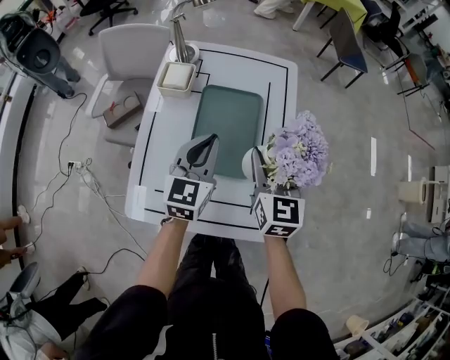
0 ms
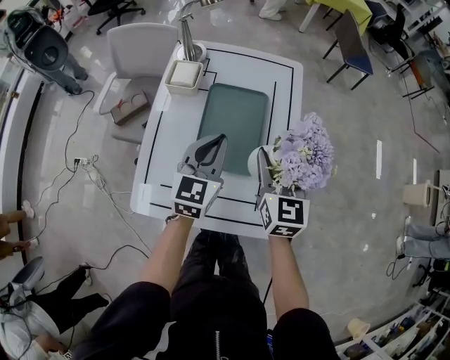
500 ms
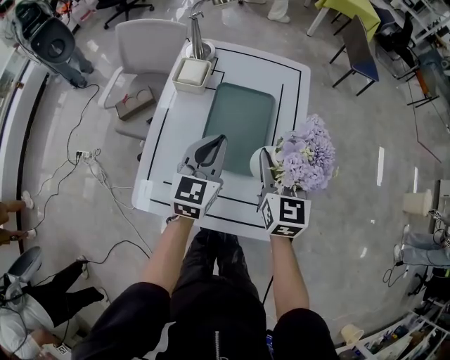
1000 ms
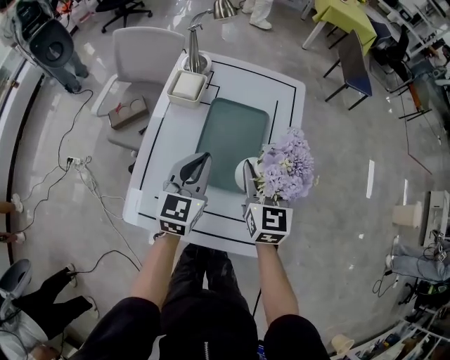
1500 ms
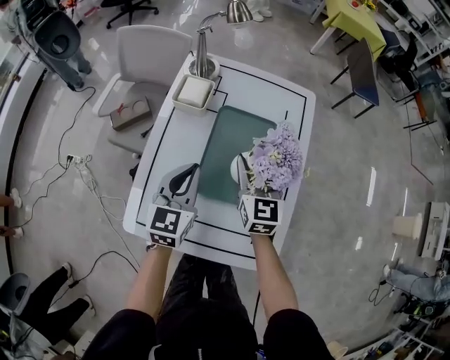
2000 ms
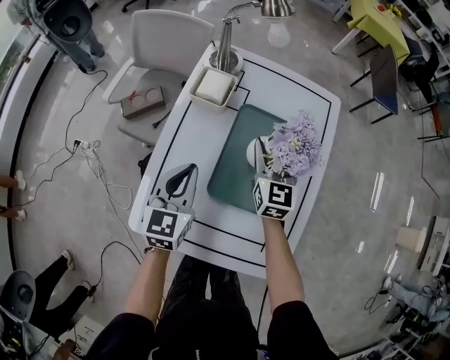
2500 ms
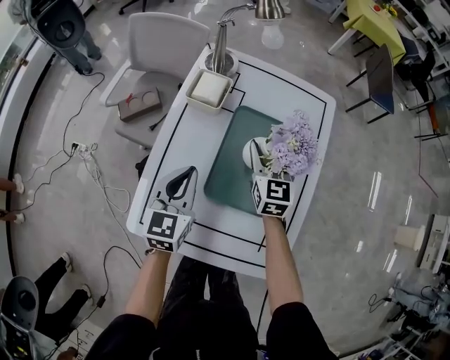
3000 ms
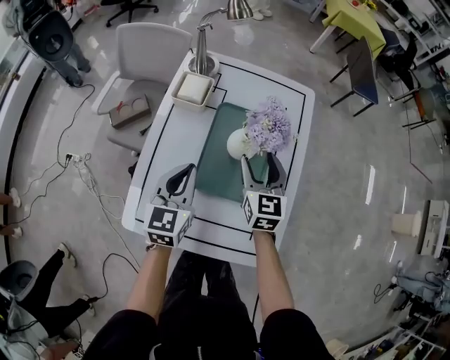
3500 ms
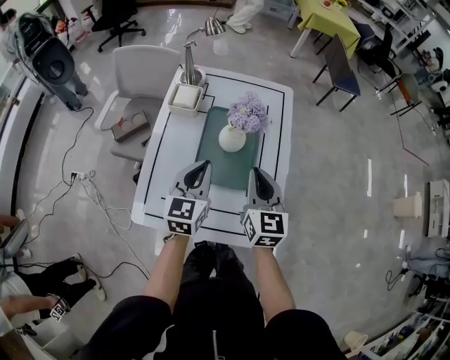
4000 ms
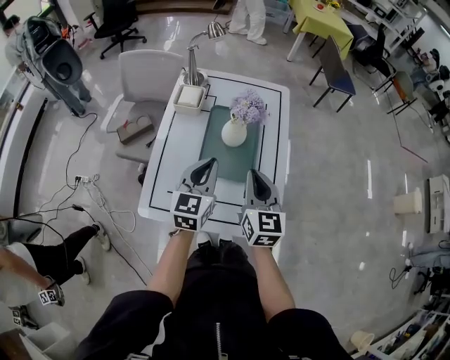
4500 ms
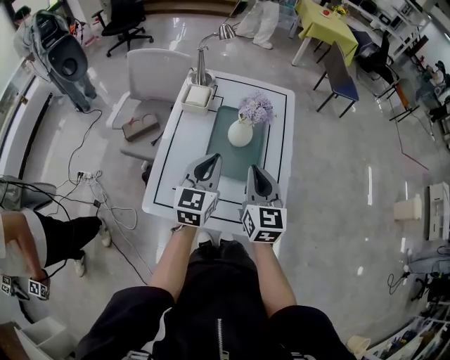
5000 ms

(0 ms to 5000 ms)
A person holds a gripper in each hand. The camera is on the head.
0 ms - 2500 ms: The left gripper shifts some 15 cm to the left and downward, while the right gripper heads forward, downward and to the left, covering approximately 20 cm.
2500 ms - 5000 ms: The left gripper moves upward, backward and to the right, approximately 20 cm, while the right gripper travels backward and upward by roughly 30 cm, and closes its fingers.

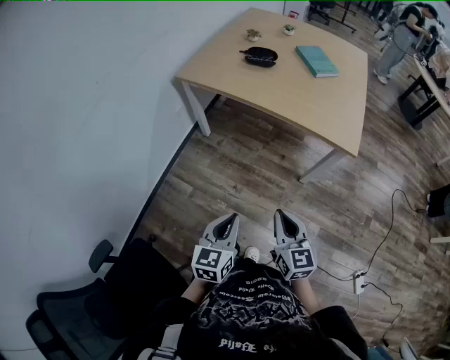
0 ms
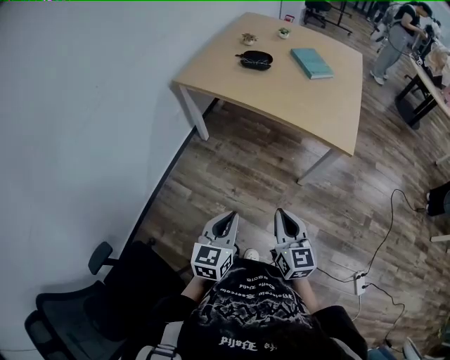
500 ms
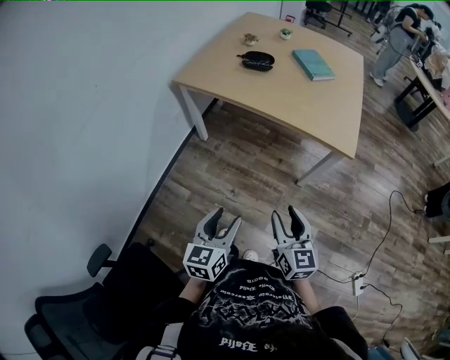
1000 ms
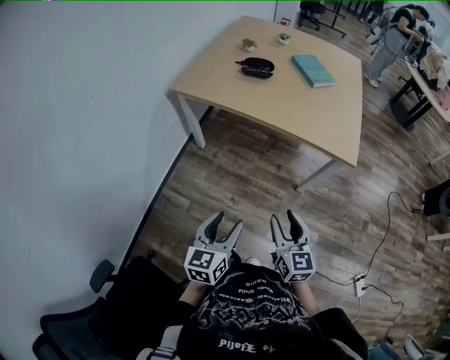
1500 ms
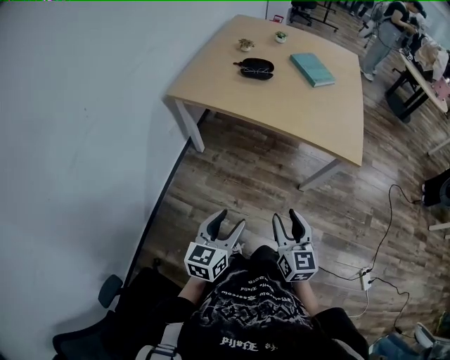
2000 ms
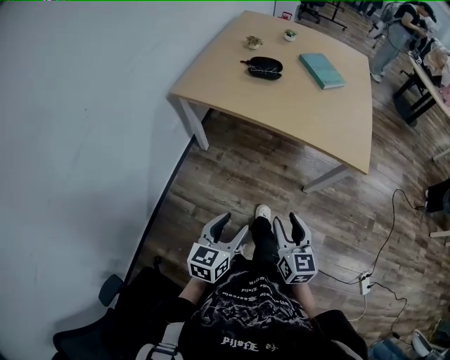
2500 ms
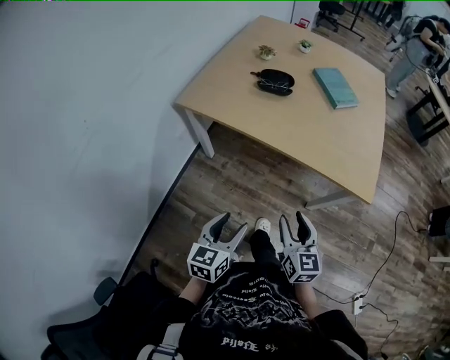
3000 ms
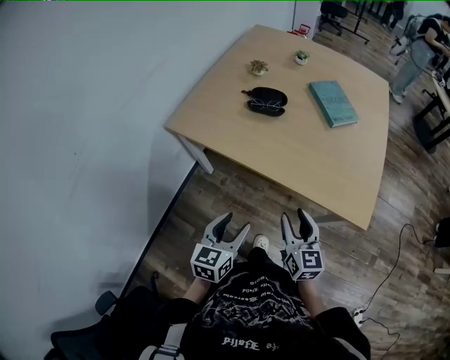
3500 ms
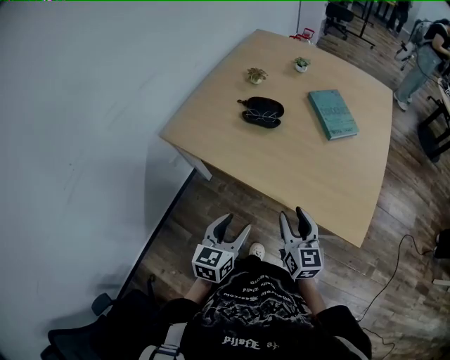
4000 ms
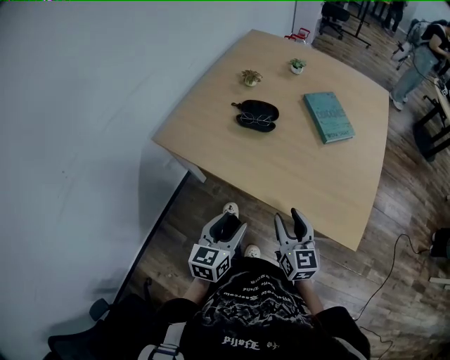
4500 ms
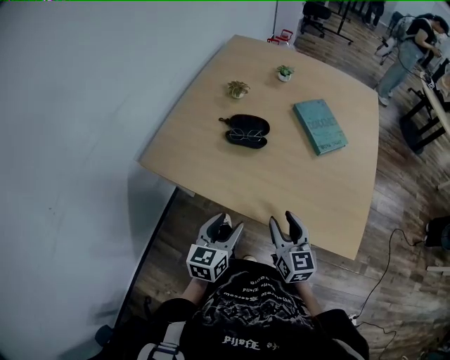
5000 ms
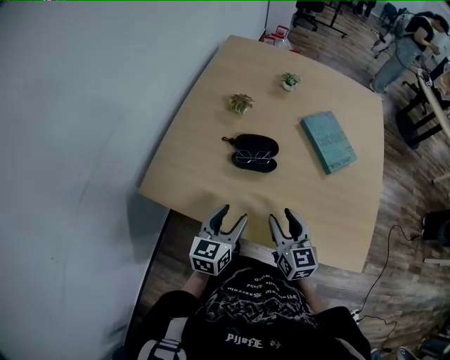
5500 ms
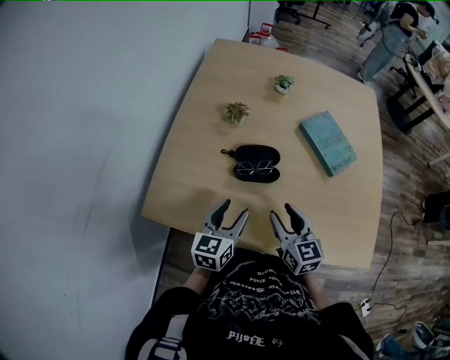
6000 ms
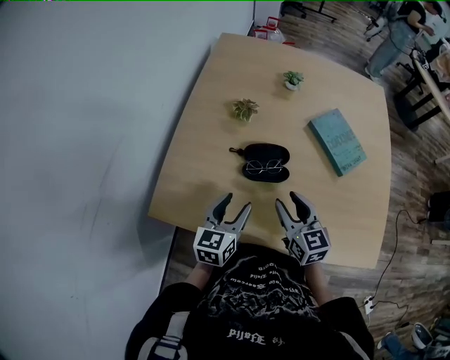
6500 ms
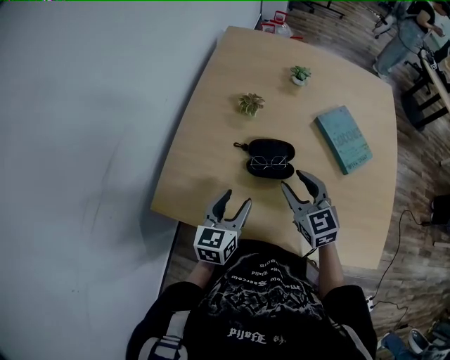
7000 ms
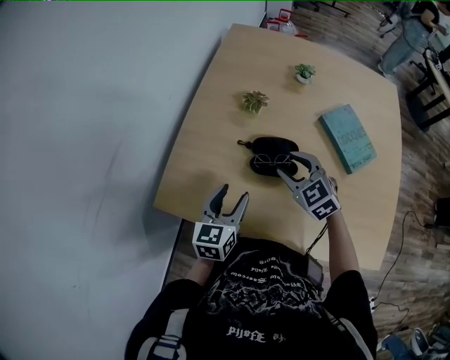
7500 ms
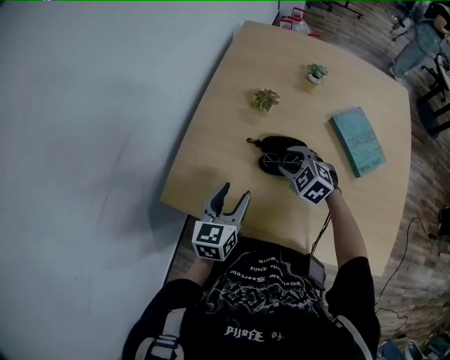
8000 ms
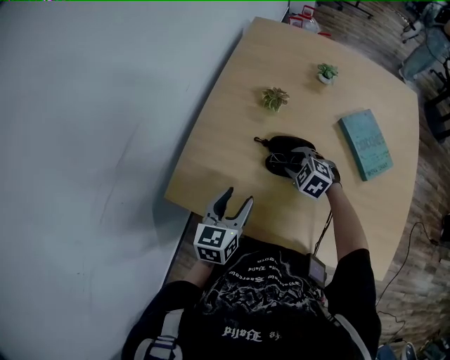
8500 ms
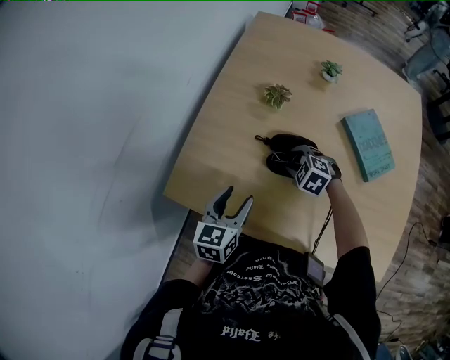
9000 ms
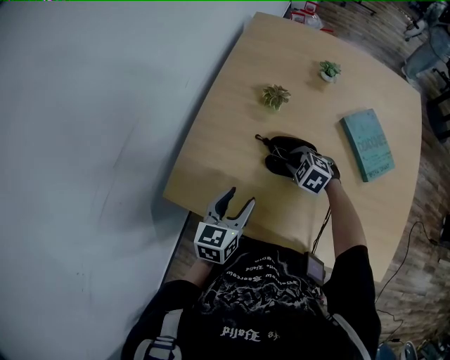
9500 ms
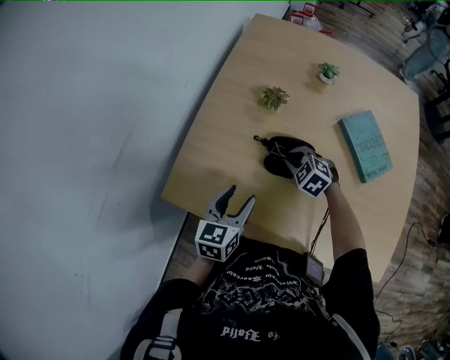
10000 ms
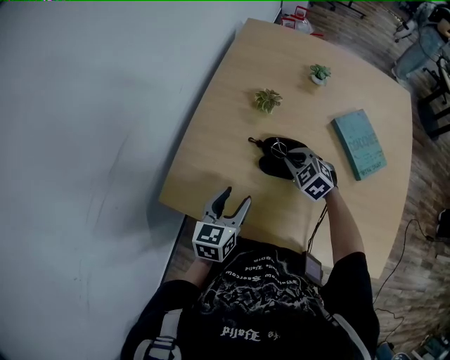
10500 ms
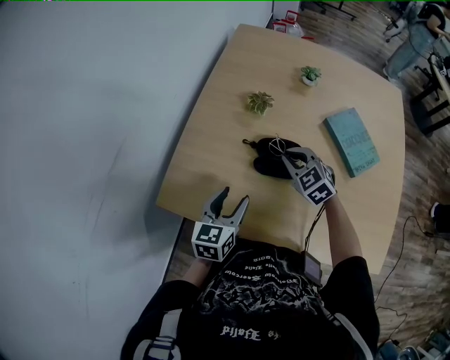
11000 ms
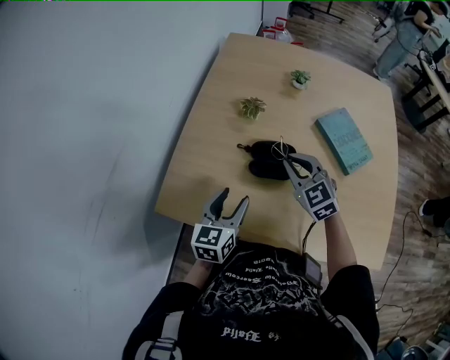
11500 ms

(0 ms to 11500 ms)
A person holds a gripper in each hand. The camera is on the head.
0 ms - 2000 ms: Both grippers move forward and to the left, roughly 10 cm. The right gripper opens up; the left gripper opens.
2000 ms - 4000 ms: Both grippers move forward, some 30 cm.
4000 ms - 6000 ms: The right gripper shifts some 30 cm forward and to the left. The left gripper is displaced forward by about 30 cm.
6000 ms - 7500 ms: The left gripper changes place by about 5 cm. Meanwhile the right gripper is displaced forward by some 15 cm, and rotates roughly 40 degrees.
7500 ms - 9500 ms: The right gripper moves downward, about 15 cm, changes its angle by some 30 degrees, and closes its fingers.
9500 ms - 11500 ms: The right gripper shifts approximately 15 cm upward, and points its fingers some 30 degrees further upward.

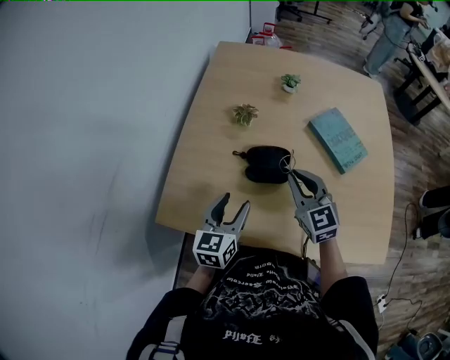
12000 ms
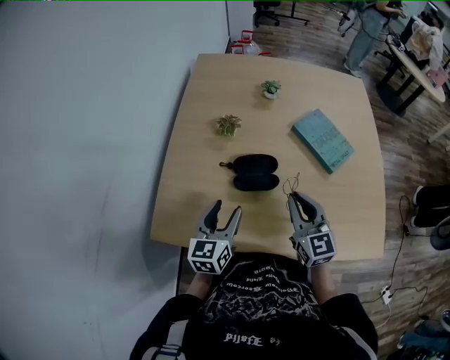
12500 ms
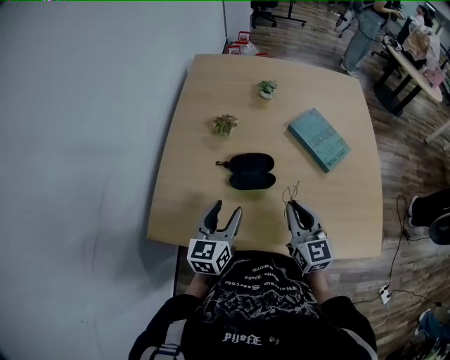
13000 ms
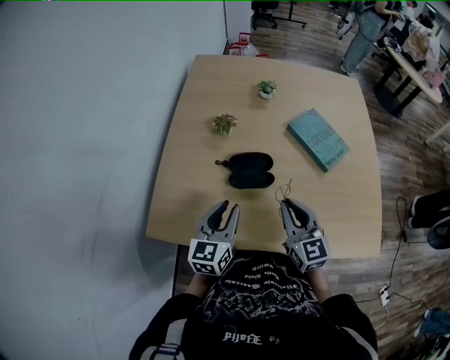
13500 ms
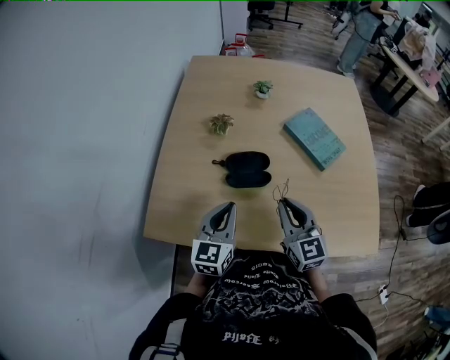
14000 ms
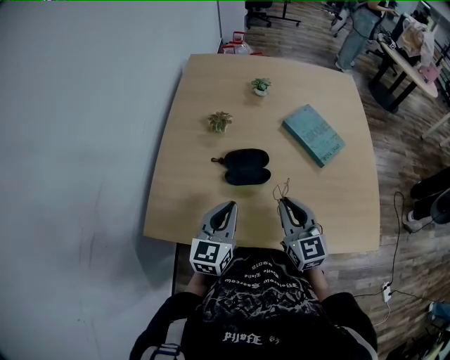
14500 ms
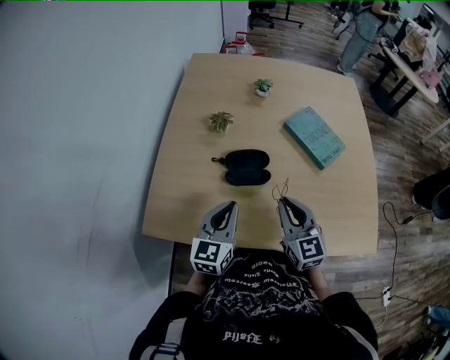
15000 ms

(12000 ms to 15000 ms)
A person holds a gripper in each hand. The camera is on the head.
12000 ms - 13500 ms: The right gripper heads backward, covering some 10 cm. Meanwhile the left gripper closes up.
13500 ms - 15000 ms: The left gripper closes its fingers.

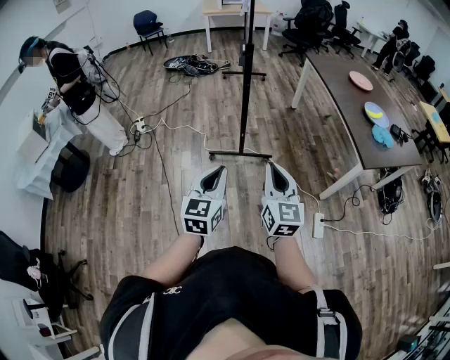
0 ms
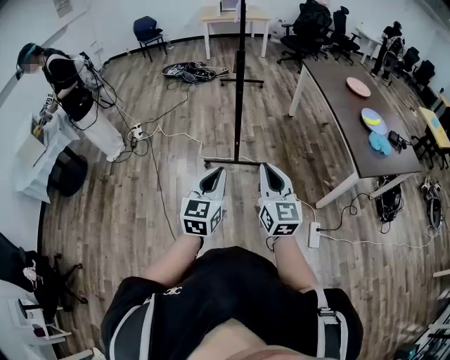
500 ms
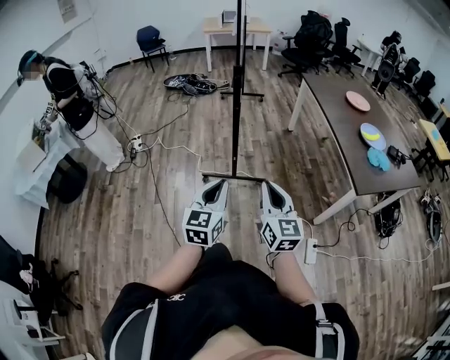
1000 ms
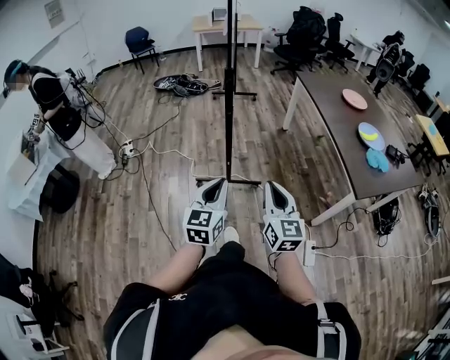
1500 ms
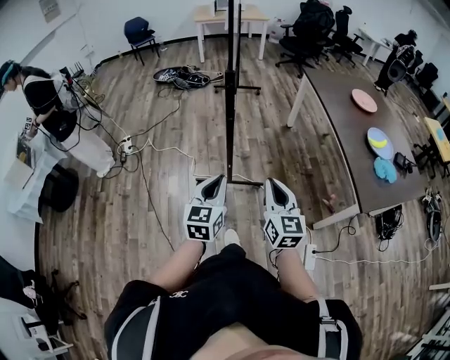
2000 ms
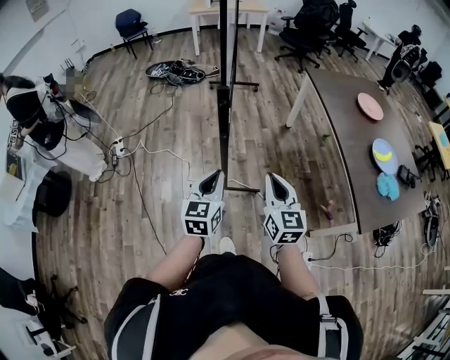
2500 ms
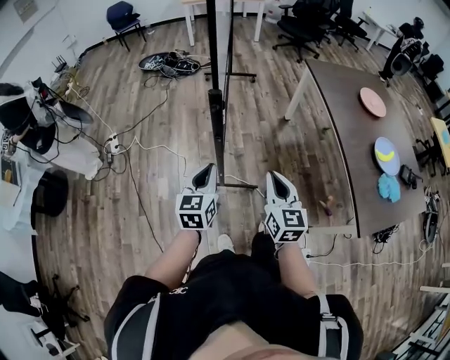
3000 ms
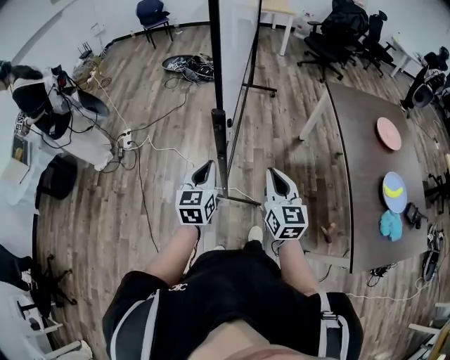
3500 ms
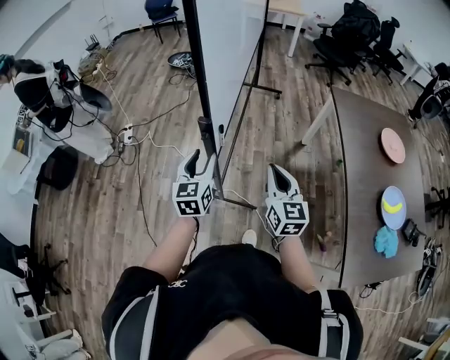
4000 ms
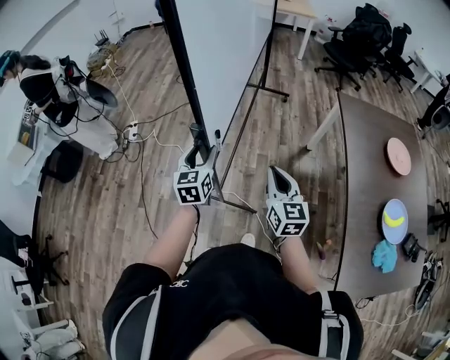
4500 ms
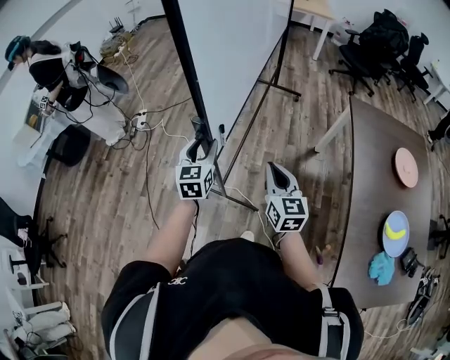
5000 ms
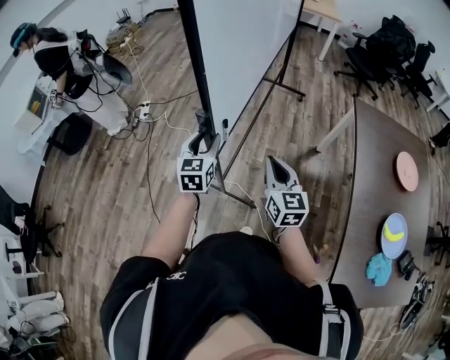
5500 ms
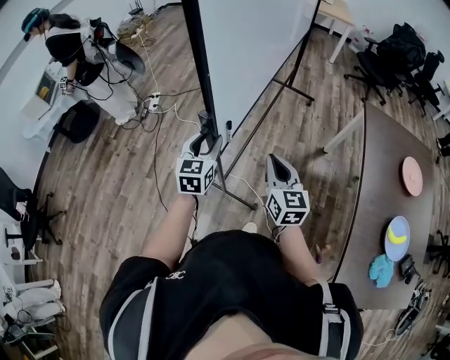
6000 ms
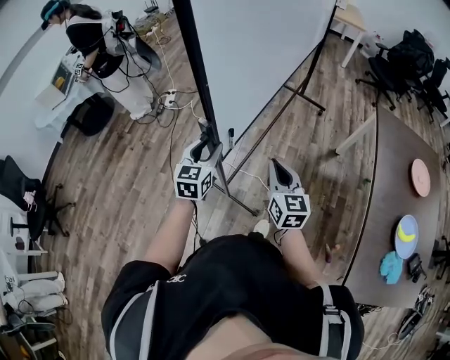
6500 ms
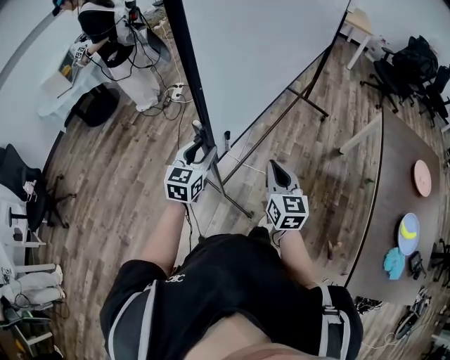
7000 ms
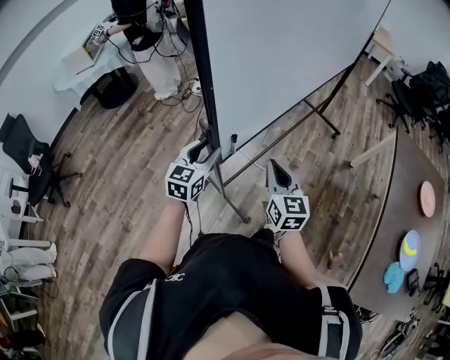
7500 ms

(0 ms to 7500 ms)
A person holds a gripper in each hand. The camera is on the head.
0 ms - 2000 ms: Both grippers move forward, roughly 20 cm.
2000 ms - 4000 ms: The grippers both shift forward by approximately 35 cm. The left gripper changes its angle by about 20 degrees, and opens.
4000 ms - 5500 ms: There are only small adjustments of the grippers.
5500 ms - 7500 ms: The two grippers go approximately 30 cm to the left and backward.
